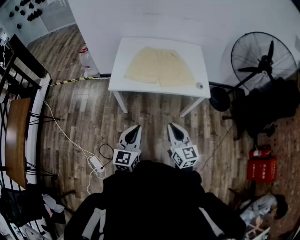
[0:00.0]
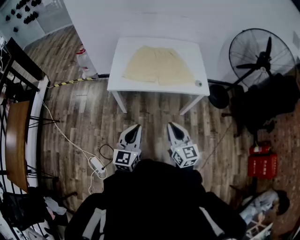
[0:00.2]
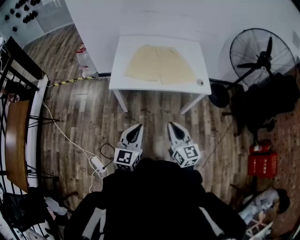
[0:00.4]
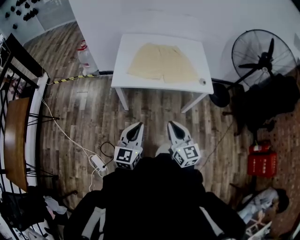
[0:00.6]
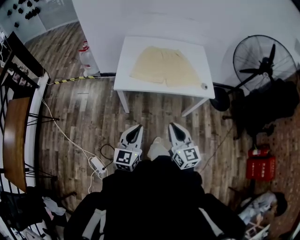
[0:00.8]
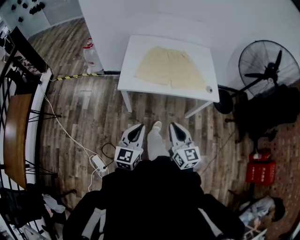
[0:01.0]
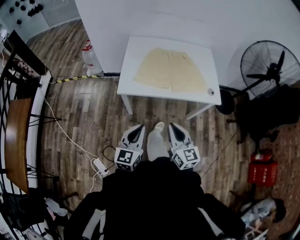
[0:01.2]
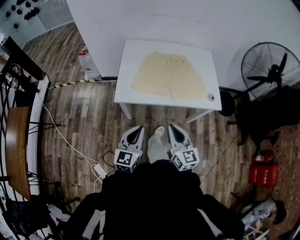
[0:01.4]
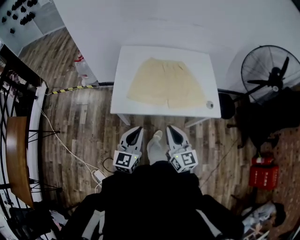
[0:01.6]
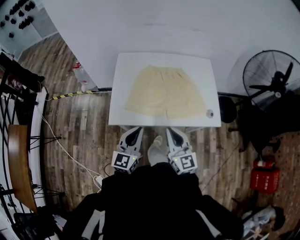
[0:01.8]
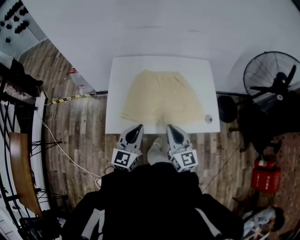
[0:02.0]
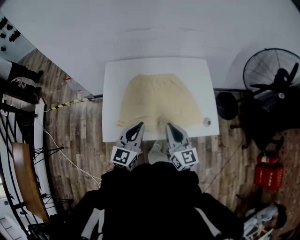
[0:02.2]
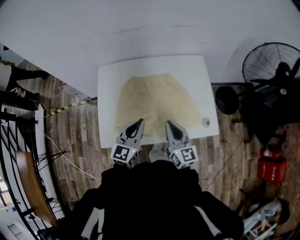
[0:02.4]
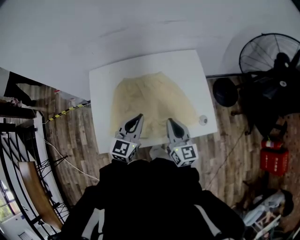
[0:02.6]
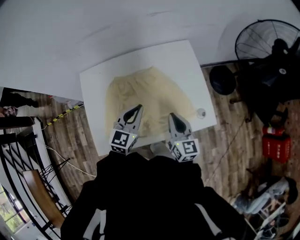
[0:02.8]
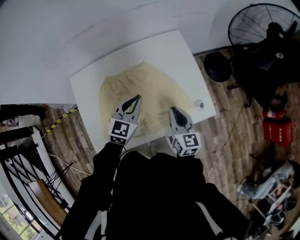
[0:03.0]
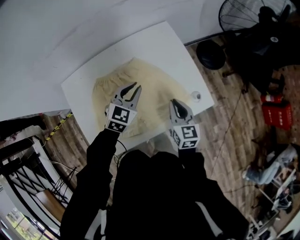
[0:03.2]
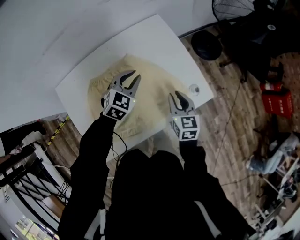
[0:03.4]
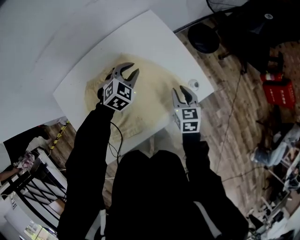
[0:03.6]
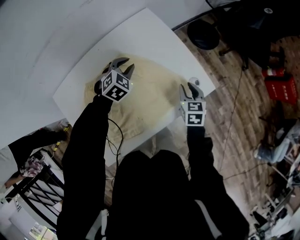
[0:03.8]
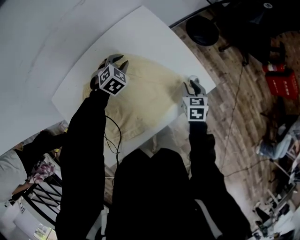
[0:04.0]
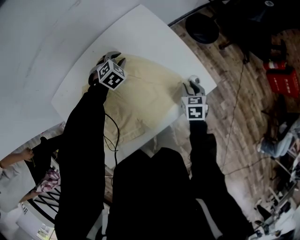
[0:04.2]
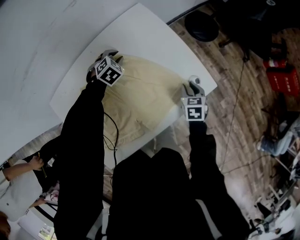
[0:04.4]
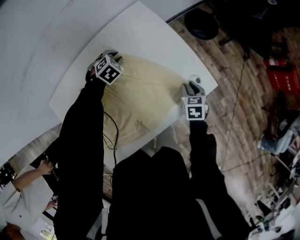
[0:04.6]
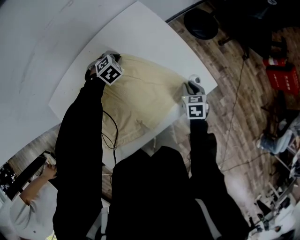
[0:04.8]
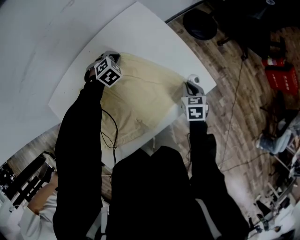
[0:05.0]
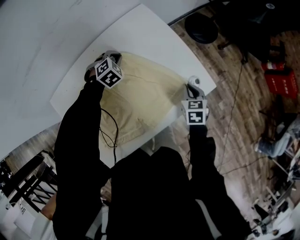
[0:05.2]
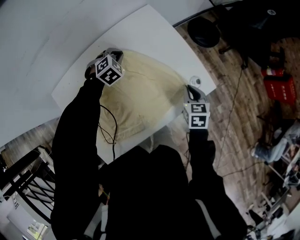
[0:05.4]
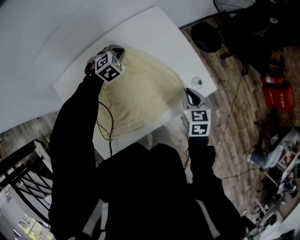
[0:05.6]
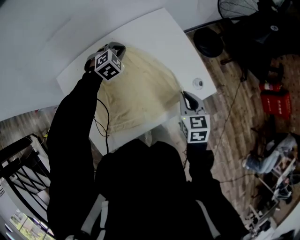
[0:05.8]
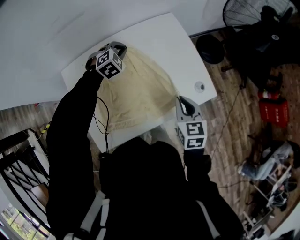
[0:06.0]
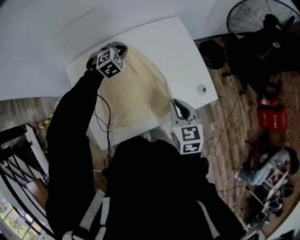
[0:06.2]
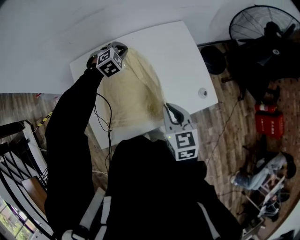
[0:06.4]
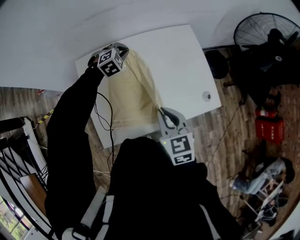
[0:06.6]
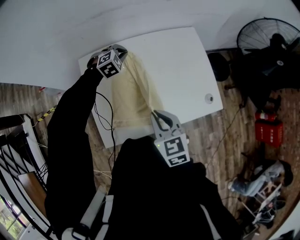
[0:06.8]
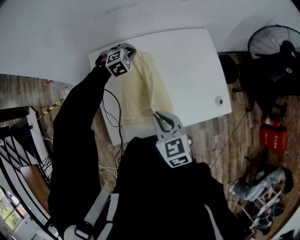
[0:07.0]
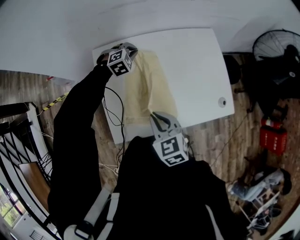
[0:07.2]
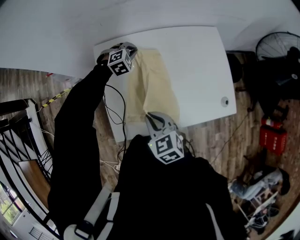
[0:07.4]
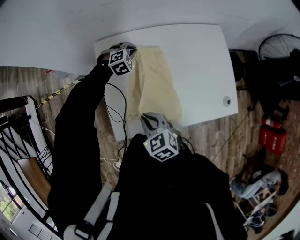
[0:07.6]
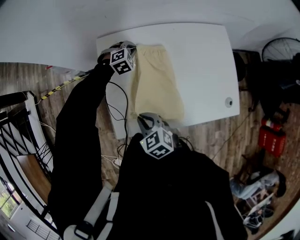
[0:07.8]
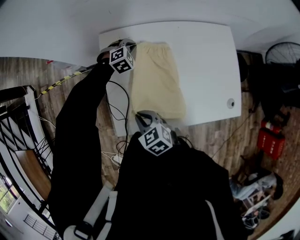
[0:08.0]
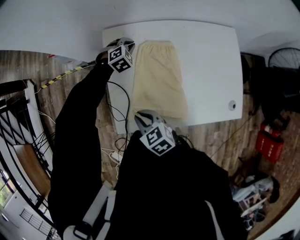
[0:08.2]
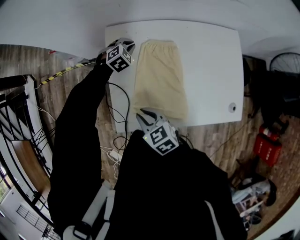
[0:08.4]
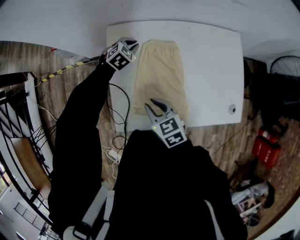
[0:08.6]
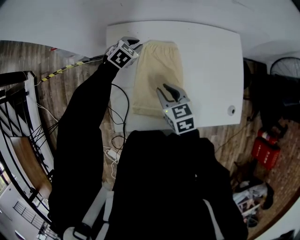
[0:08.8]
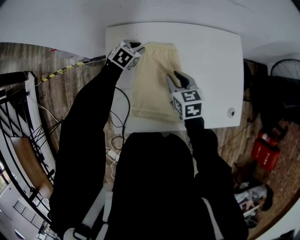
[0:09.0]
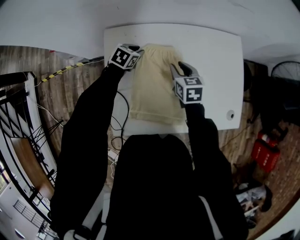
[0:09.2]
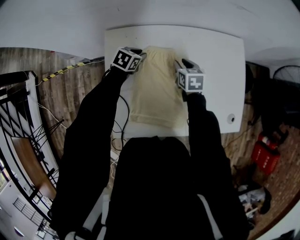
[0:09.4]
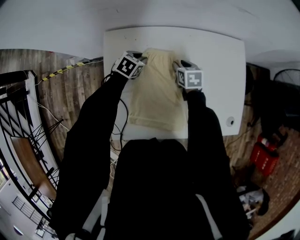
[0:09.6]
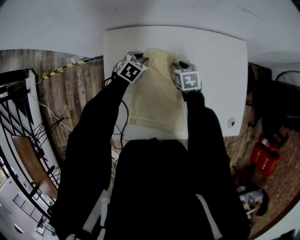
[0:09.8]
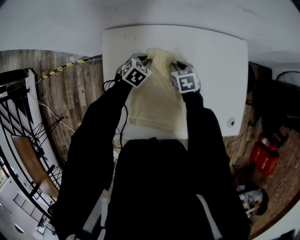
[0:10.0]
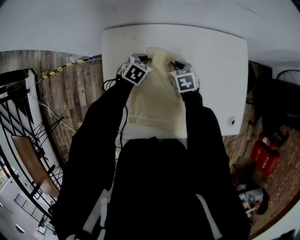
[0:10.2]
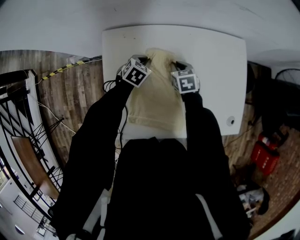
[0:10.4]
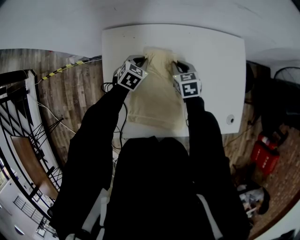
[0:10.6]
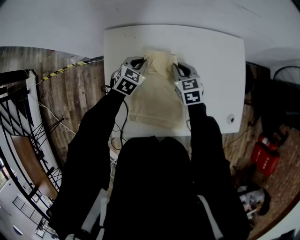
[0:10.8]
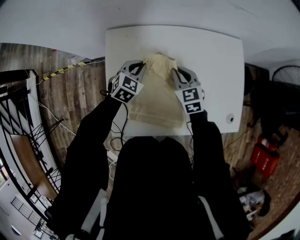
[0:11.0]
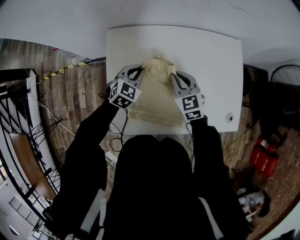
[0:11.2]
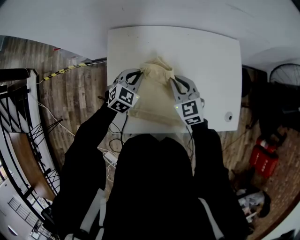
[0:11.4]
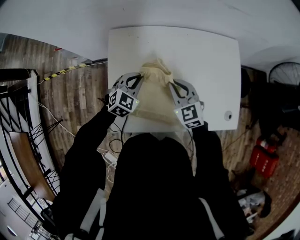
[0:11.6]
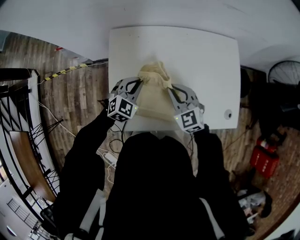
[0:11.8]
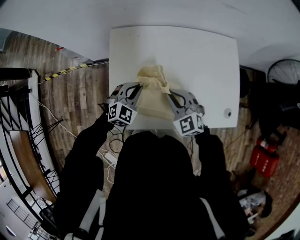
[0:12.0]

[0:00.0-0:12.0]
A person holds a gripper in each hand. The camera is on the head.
0.0 to 1.6 s: The left gripper heads forward, covering about 20 cm; the right gripper is displaced forward and to the left by approximately 20 cm.
1.6 to 3.0 s: The left gripper moves about 40 cm, and changes its angle by approximately 40 degrees. Meanwhile the right gripper moves roughly 35 cm, and swivels approximately 30 degrees.
3.0 to 4.4 s: The right gripper shifts some 20 cm downward and to the right, tips its fingers downward by about 40 degrees, and opens its fingers. The left gripper travels forward and downward by some 30 cm, and tilts its fingers approximately 40 degrees downward.
4.4 to 6.0 s: The grippers both shift upward, to the left and backward by approximately 20 cm. The right gripper rotates roughly 20 degrees.
6.0 to 7.6 s: The right gripper reaches some 5 cm upward, then returns, and turns by about 40 degrees. Meanwhile the left gripper shifts by approximately 20 cm.
7.6 to 9.0 s: The left gripper rotates around the line of its fingers by some 40 degrees, counterclockwise from behind; the right gripper changes place by some 20 cm.
9.0 to 10.4 s: The right gripper travels downward and forward by some 15 cm, while the left gripper shifts by some 5 cm.
10.4 to 12.0 s: The grippers both shift backward and upward by some 25 cm. The left gripper rotates about 30 degrees. The right gripper rotates around the line of its fingers by some 40 degrees, counterclockwise from behind.

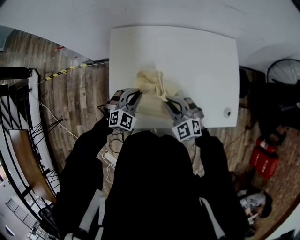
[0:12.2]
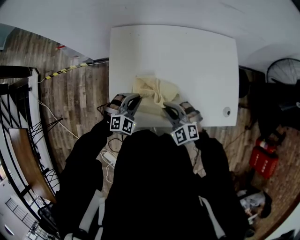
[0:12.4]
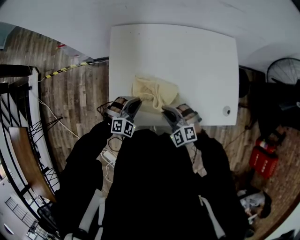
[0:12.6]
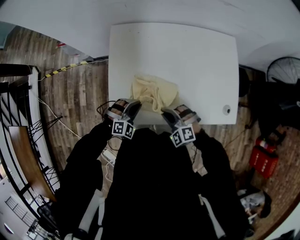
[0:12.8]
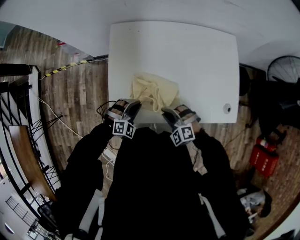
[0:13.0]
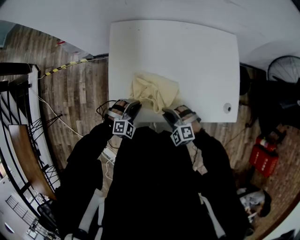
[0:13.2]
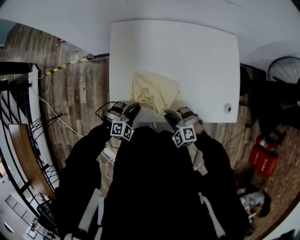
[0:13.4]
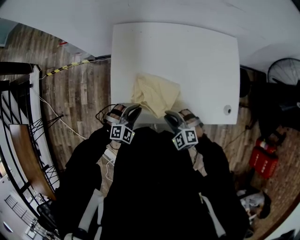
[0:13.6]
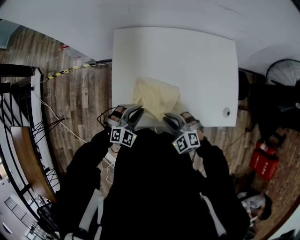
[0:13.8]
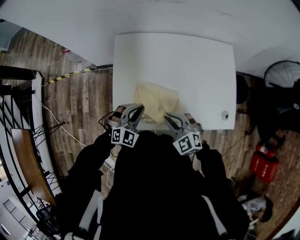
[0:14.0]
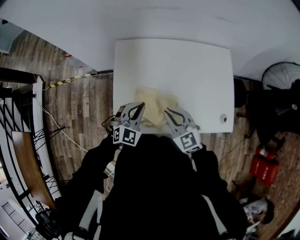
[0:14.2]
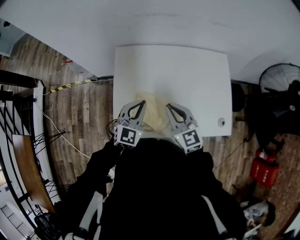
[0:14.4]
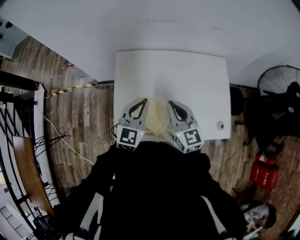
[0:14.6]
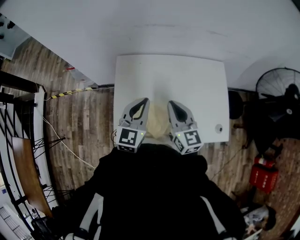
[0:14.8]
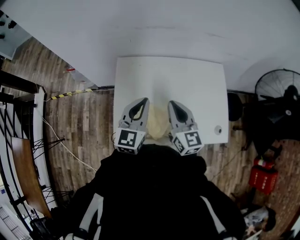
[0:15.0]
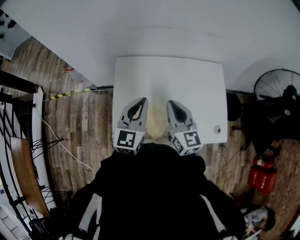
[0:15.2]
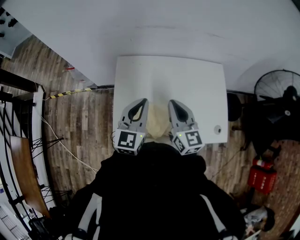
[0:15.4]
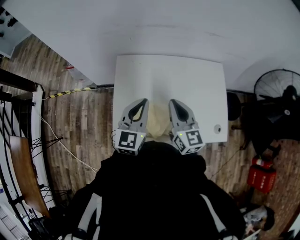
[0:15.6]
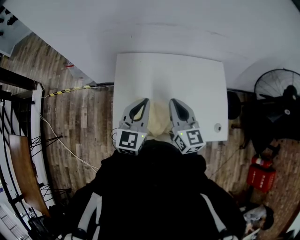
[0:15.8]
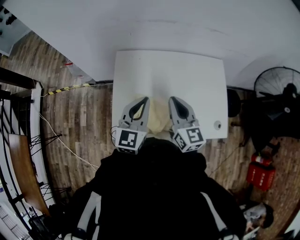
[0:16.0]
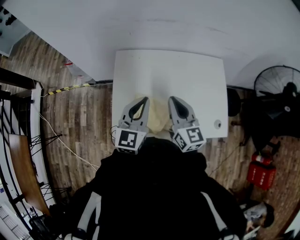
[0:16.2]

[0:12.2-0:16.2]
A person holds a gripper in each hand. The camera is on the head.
12.2 to 13.6 s: The right gripper goes roughly 15 cm backward and downward. The left gripper travels backward by approximately 10 cm.
13.6 to 14.8 s: Both grippers move upward and forward, roughly 25 cm. The left gripper points its fingers some 30 degrees further upward. Meanwhile the right gripper points its fingers approximately 40 degrees further upward.
14.8 to 16.2 s: The grippers make only small movements.

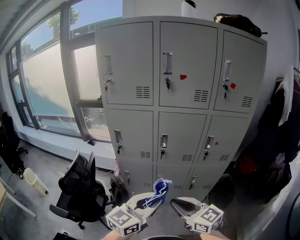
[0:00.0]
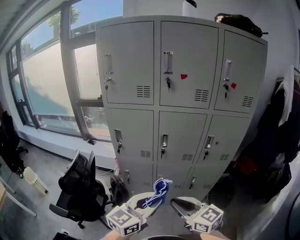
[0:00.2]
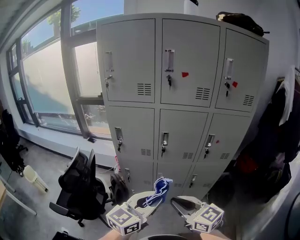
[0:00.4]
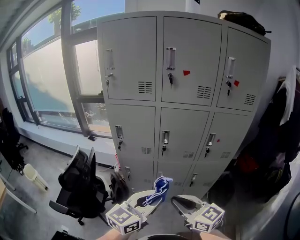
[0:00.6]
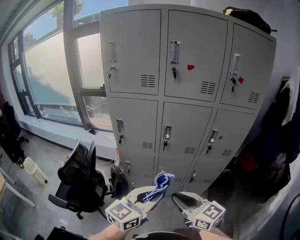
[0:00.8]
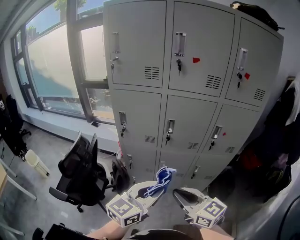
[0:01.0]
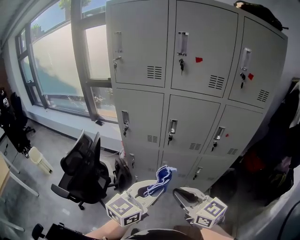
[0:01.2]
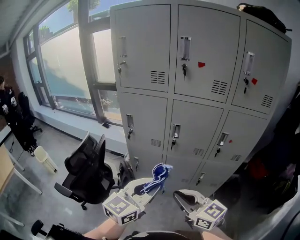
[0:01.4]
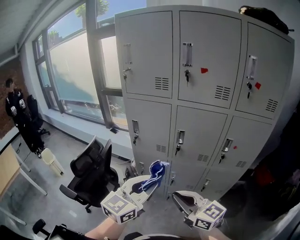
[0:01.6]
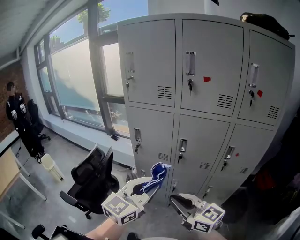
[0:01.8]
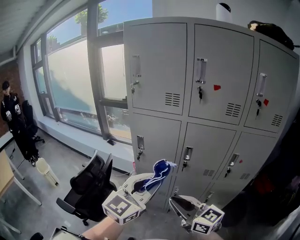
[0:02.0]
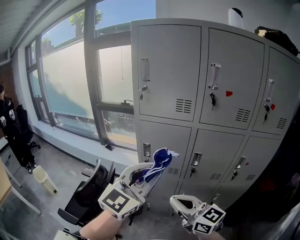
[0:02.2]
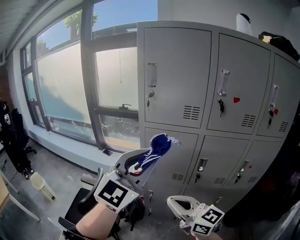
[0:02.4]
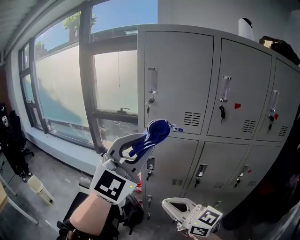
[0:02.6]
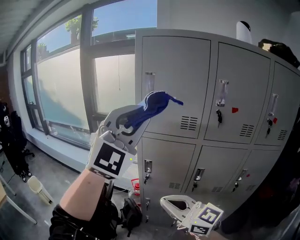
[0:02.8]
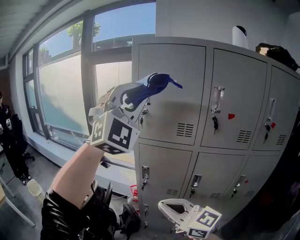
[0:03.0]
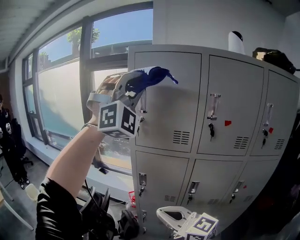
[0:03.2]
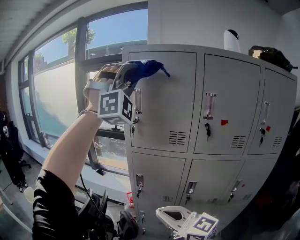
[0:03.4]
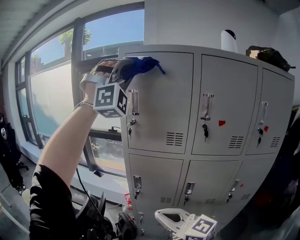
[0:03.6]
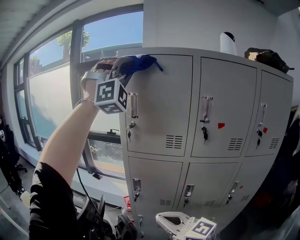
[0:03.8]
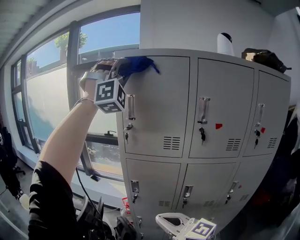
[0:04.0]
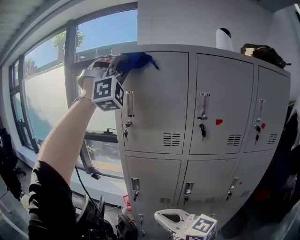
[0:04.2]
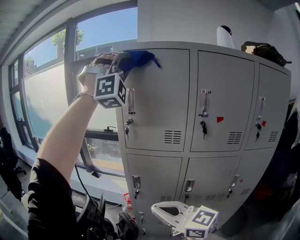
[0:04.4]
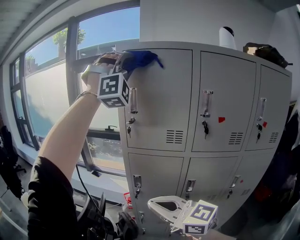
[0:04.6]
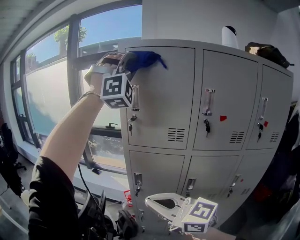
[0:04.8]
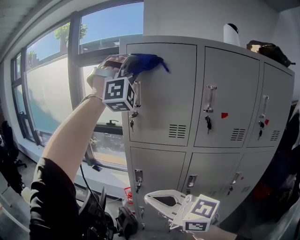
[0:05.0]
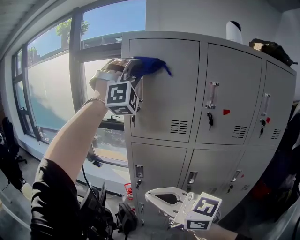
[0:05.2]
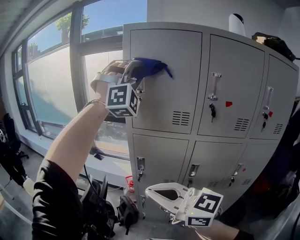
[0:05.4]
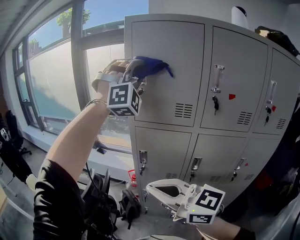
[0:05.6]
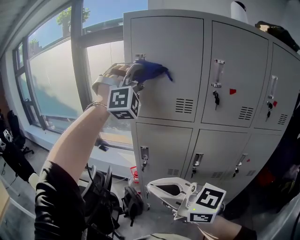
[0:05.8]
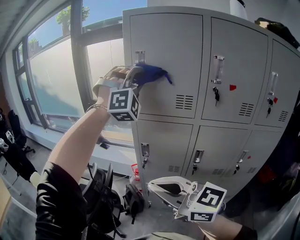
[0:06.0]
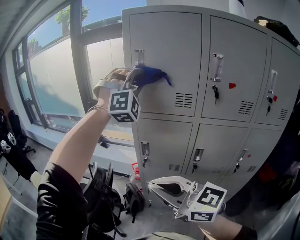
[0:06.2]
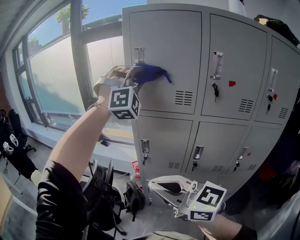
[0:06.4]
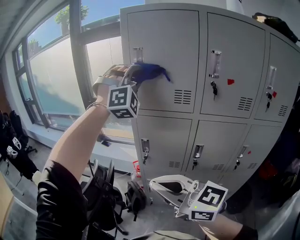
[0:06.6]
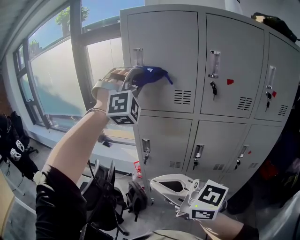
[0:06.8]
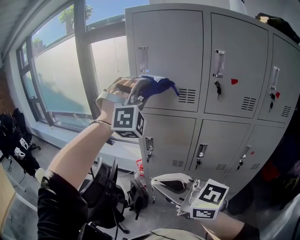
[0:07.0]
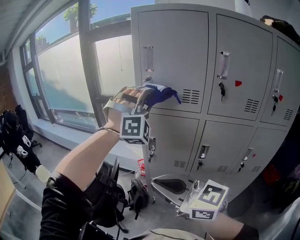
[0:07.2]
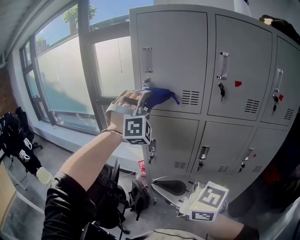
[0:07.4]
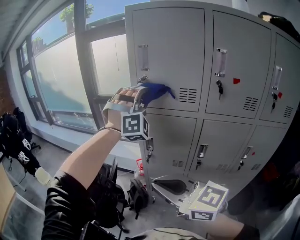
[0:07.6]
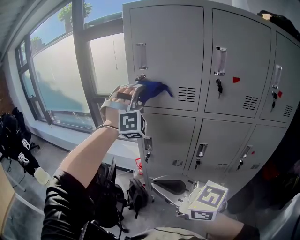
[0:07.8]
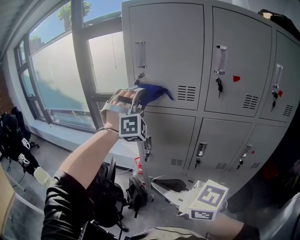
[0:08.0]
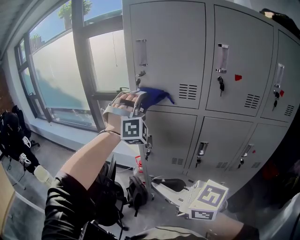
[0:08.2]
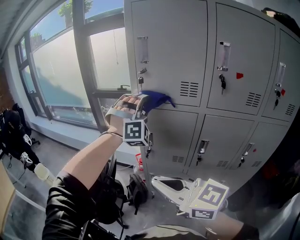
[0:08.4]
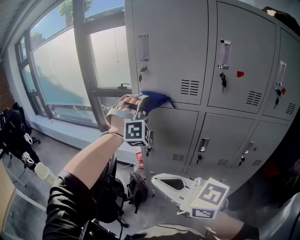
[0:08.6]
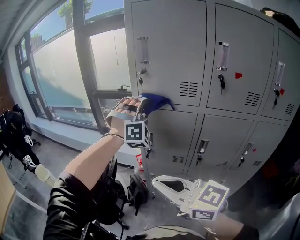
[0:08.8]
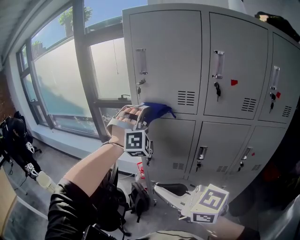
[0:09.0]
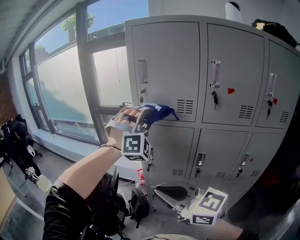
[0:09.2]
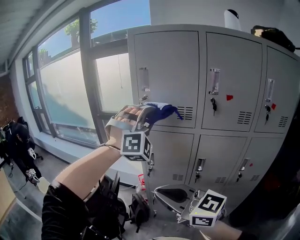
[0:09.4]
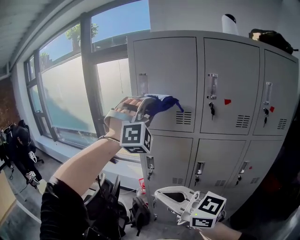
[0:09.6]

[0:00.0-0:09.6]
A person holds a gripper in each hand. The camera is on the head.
1.6 to 3.2 s: The right gripper ends up about 25 cm from where it was.
3.2 to 4.8 s: The right gripper travels upward by roughly 5 cm.
4.8 to 6.4 s: The right gripper moves approximately 5 cm.
